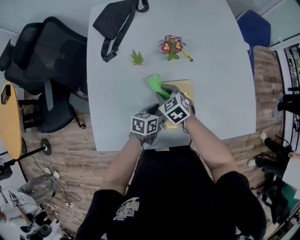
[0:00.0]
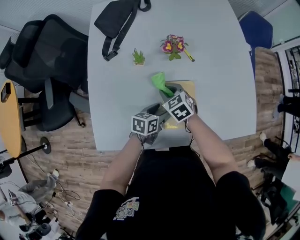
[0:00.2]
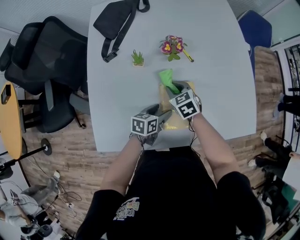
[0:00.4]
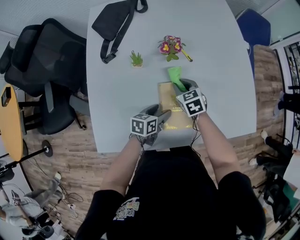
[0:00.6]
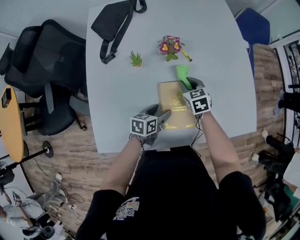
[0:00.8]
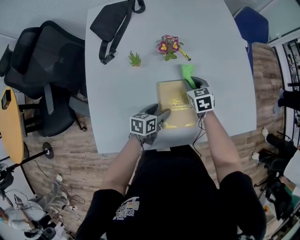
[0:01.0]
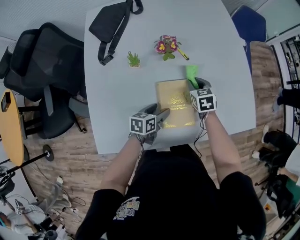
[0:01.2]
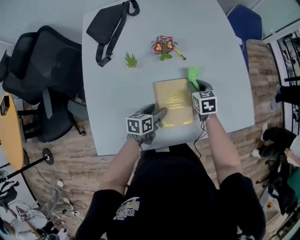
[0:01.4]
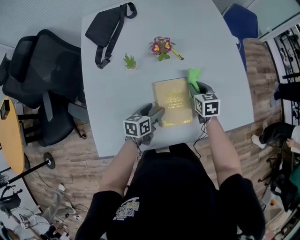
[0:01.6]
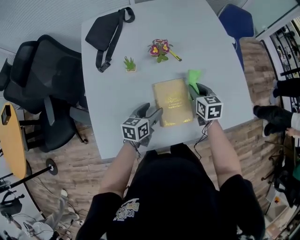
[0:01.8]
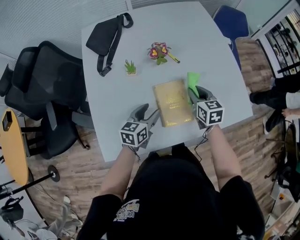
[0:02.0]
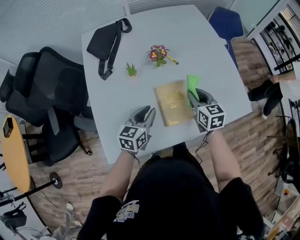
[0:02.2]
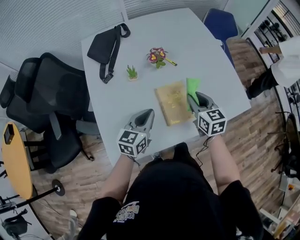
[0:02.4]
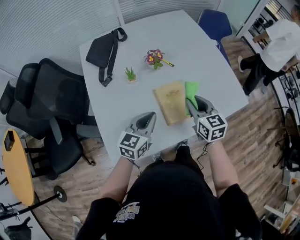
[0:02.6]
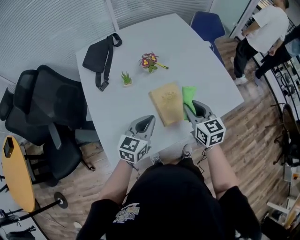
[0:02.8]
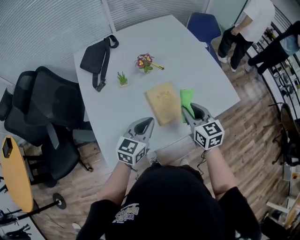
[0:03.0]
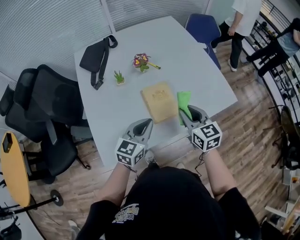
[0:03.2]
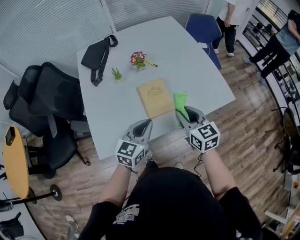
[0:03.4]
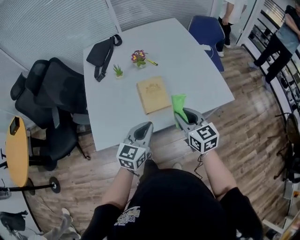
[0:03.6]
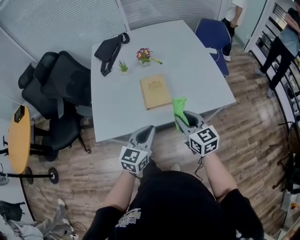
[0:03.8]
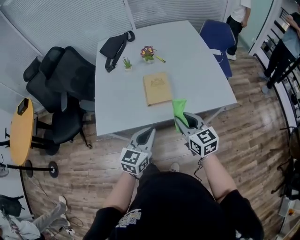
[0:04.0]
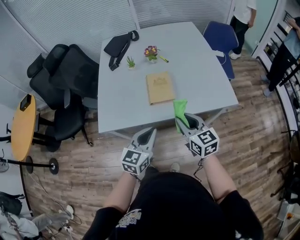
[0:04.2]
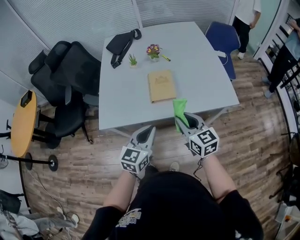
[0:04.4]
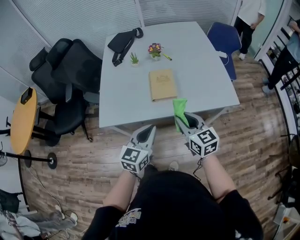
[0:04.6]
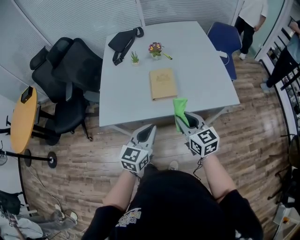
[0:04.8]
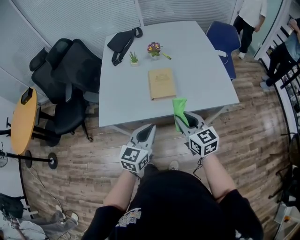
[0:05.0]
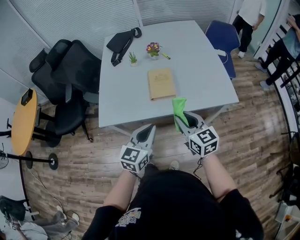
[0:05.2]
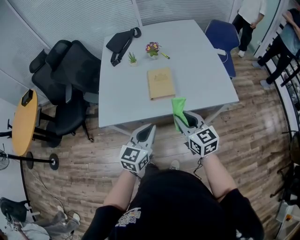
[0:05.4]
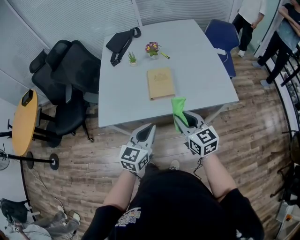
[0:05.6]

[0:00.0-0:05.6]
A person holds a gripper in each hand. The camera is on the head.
0:00.0 to 0:01.4: The right gripper moves to the right and forward, approximately 20 cm, and turns by approximately 30 degrees.
0:01.4 to 0:02.8: The left gripper shifts about 20 cm upward and backward, turns by approximately 40 degrees, and closes up, while the right gripper is displaced backward and upward by roughly 25 cm, and swivels roughly 30 degrees.
0:02.8 to 0:04.2: The two grippers go about 25 cm backward and to the right. The right gripper turns by some 20 degrees.
0:04.2 to 0:05.6: The grippers make only small movements.

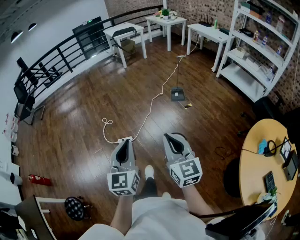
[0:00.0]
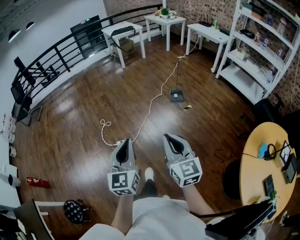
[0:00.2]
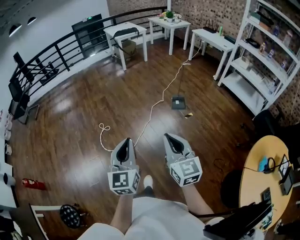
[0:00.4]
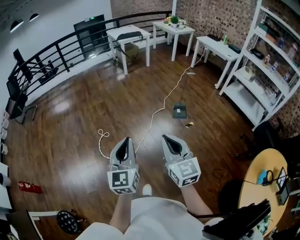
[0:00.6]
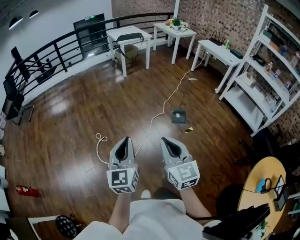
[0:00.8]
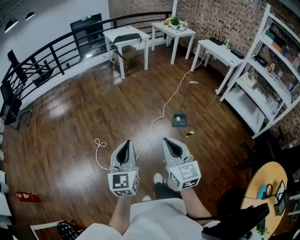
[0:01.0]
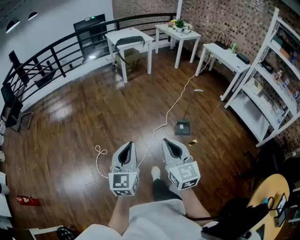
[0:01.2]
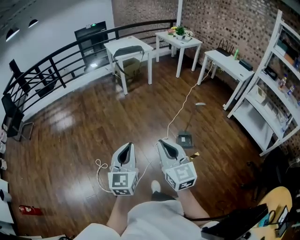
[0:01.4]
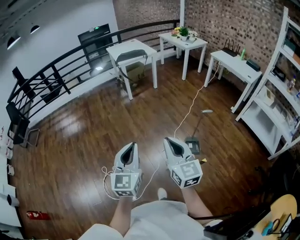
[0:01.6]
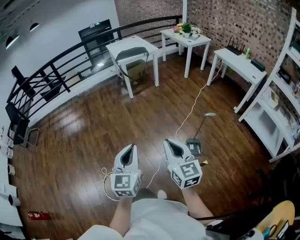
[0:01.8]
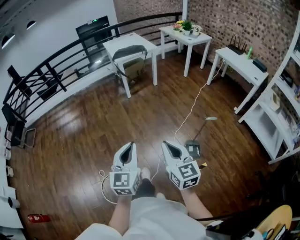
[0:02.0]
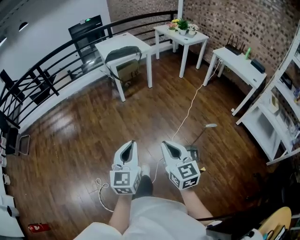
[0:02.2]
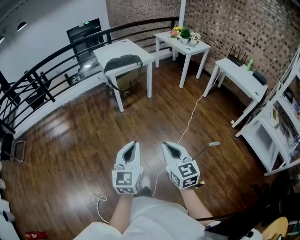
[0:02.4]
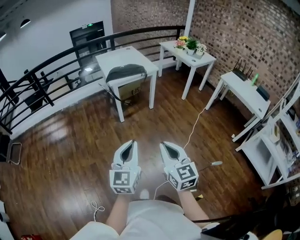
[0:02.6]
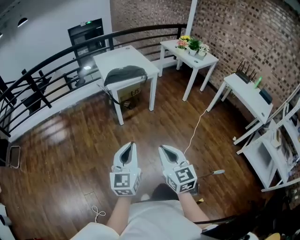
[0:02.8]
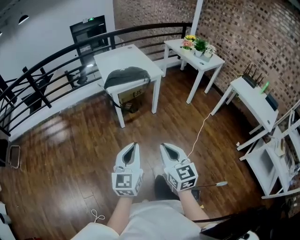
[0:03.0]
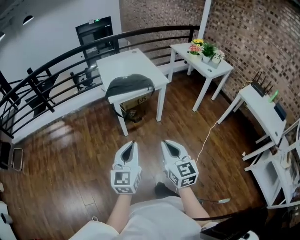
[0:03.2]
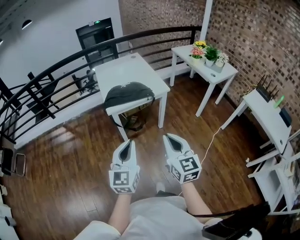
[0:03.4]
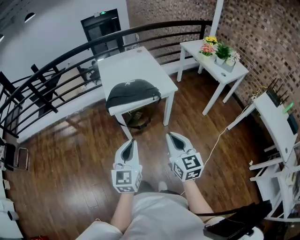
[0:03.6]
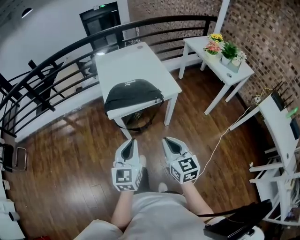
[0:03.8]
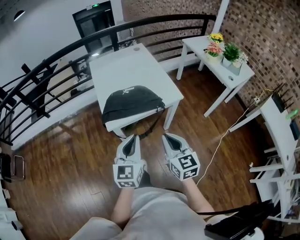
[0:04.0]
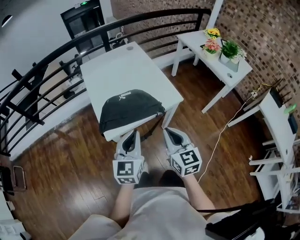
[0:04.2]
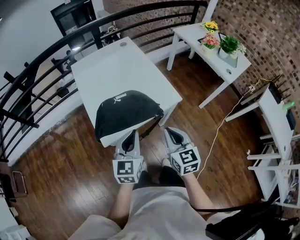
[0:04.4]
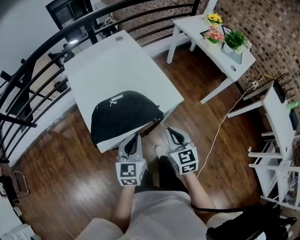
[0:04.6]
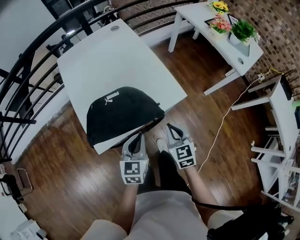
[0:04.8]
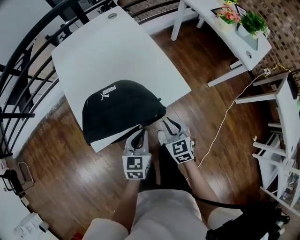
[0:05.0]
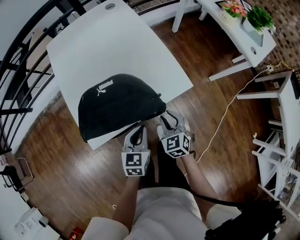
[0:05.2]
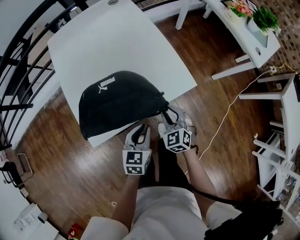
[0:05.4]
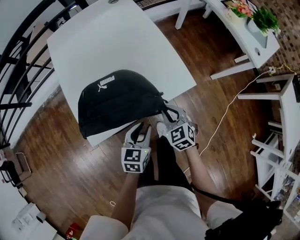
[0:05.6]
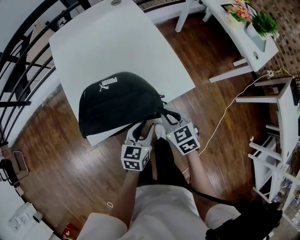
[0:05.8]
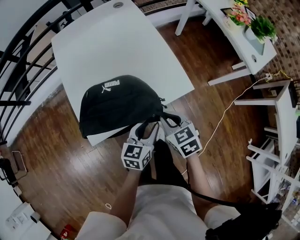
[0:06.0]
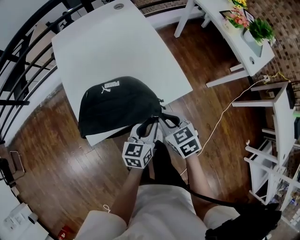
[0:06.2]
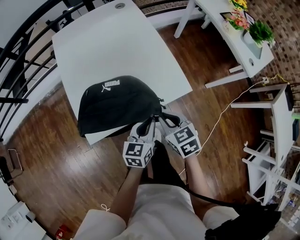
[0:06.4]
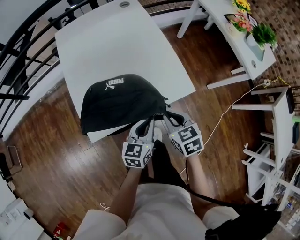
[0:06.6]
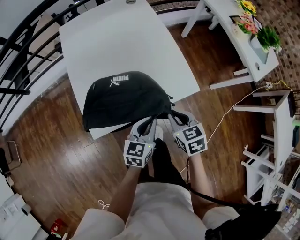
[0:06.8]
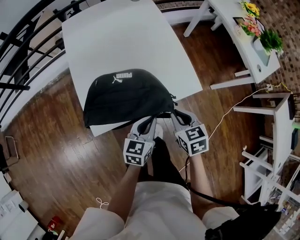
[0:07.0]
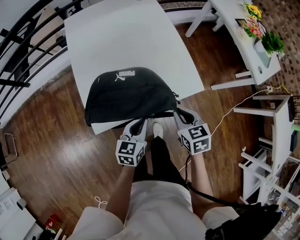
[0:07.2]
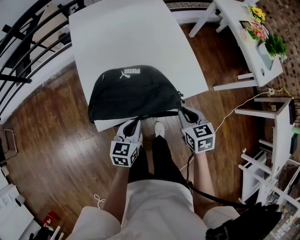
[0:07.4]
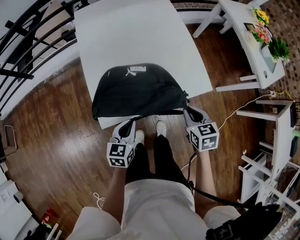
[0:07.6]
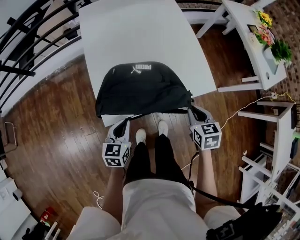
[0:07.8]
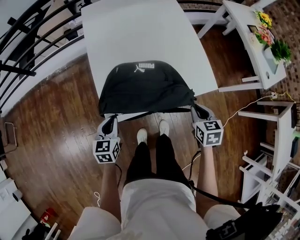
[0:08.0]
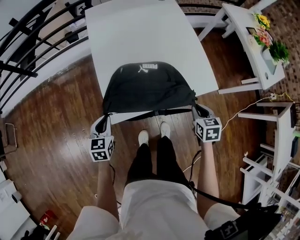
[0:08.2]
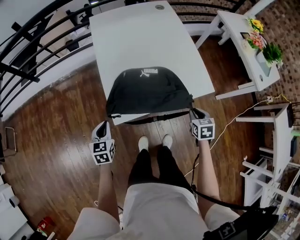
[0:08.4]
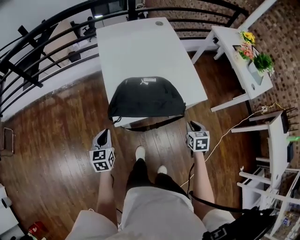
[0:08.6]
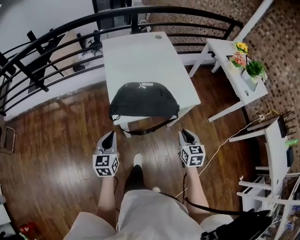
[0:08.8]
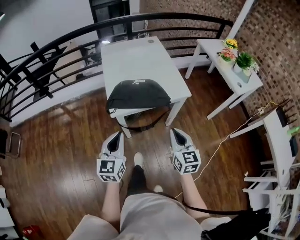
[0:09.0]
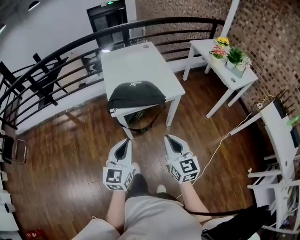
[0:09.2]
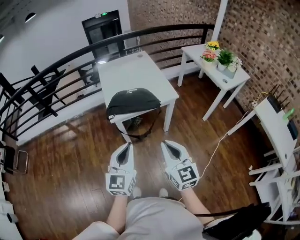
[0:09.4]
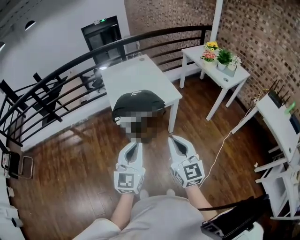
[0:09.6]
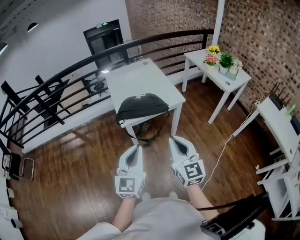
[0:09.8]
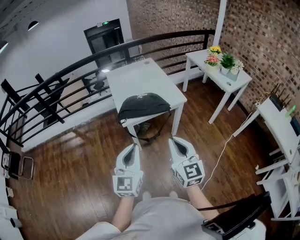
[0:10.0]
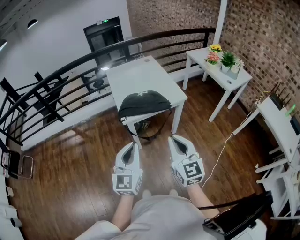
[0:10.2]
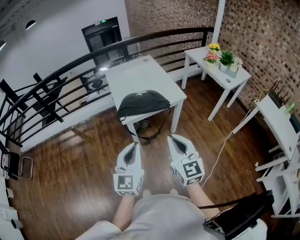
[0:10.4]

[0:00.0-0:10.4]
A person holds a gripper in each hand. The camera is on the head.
0:00.0 to 0:01.4: Both grippers are carried forward, roughly 60 cm.
0:01.4 to 0:03.0: Both grippers are carried forward, approximately 80 cm.
0:03.0 to 0:04.4: The pair of grippers is taken forward, approximately 60 cm.
0:04.4 to 0:06.0: The right gripper travels downward and forward by about 20 cm, and turns by roughly 30 degrees. The left gripper travels downward, to the right and forward by some 25 cm, turns by some 30 degrees, and opens.
0:06.0 to 0:07.4: The left gripper is displaced to the left by approximately 15 cm, and closes its fingers.
0:07.4 to 0:09.0: The two grippers go some 30 cm backward and upward. The left gripper swivels roughly 30 degrees, while the right gripper points its fingers about 30 degrees further upward.
0:09.0 to 0:10.4: The two grippers go about 20 cm backward and upward.

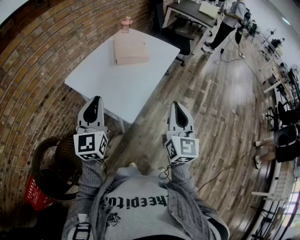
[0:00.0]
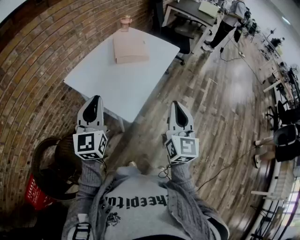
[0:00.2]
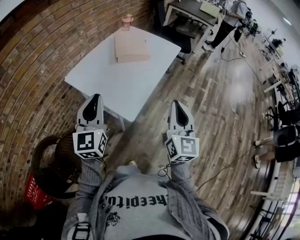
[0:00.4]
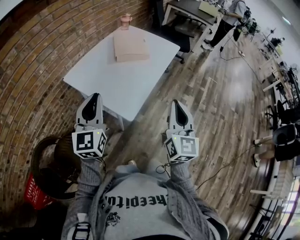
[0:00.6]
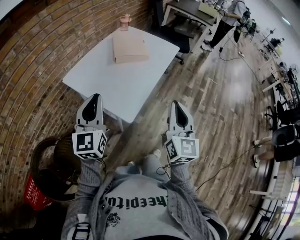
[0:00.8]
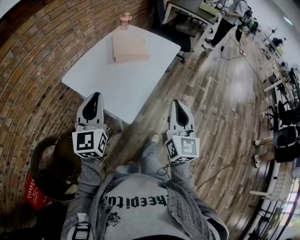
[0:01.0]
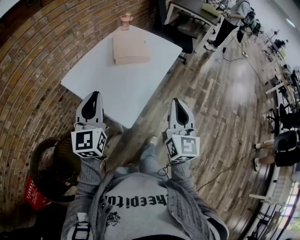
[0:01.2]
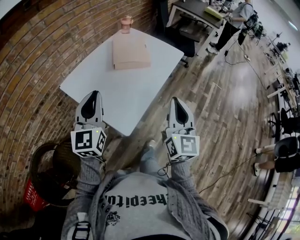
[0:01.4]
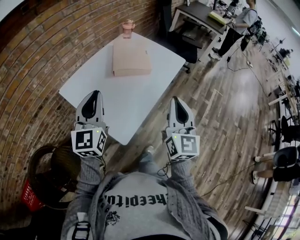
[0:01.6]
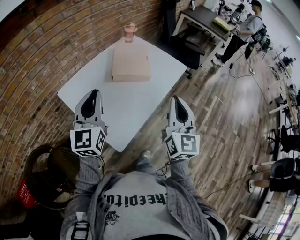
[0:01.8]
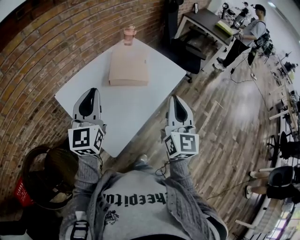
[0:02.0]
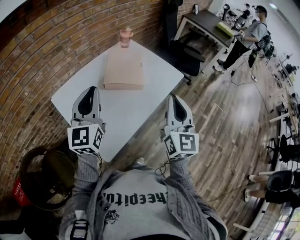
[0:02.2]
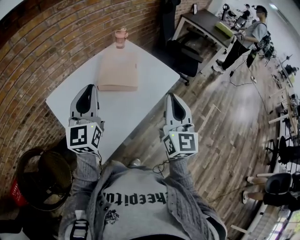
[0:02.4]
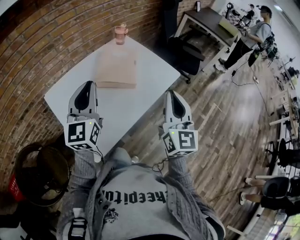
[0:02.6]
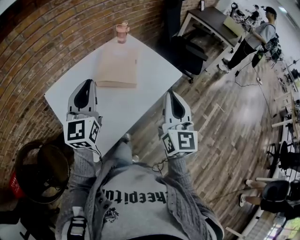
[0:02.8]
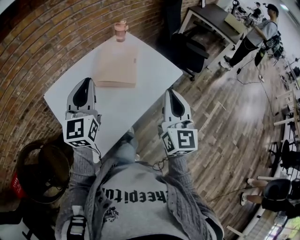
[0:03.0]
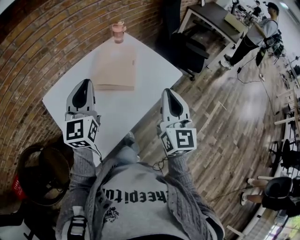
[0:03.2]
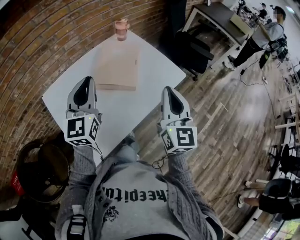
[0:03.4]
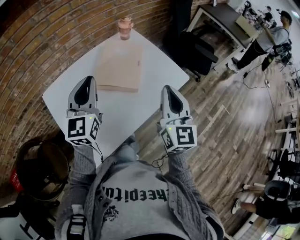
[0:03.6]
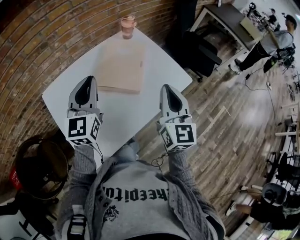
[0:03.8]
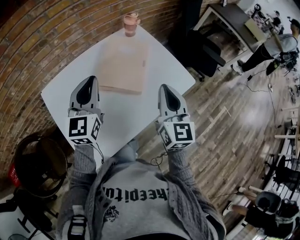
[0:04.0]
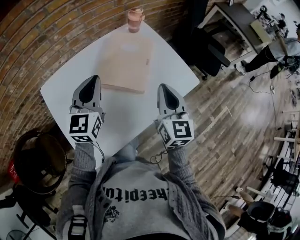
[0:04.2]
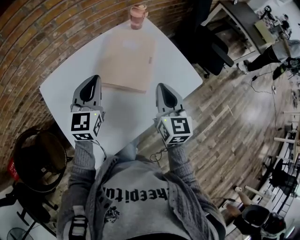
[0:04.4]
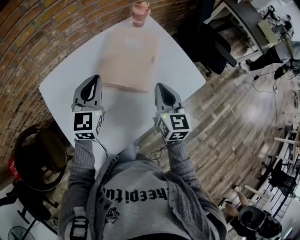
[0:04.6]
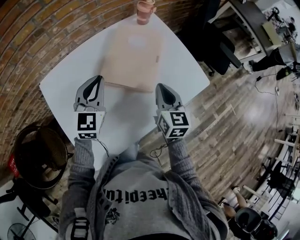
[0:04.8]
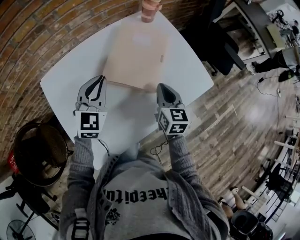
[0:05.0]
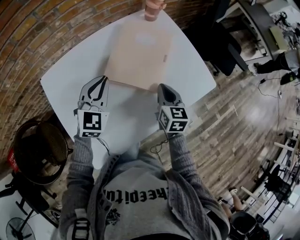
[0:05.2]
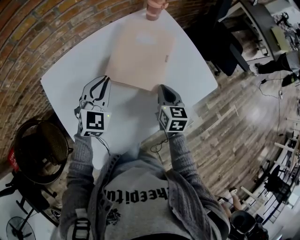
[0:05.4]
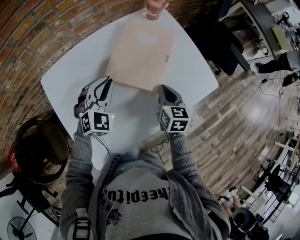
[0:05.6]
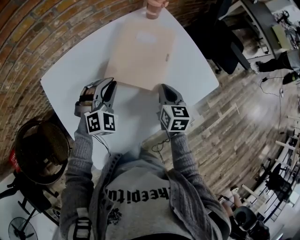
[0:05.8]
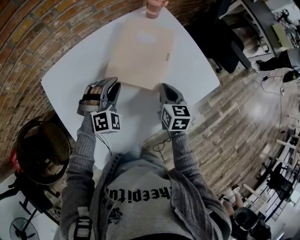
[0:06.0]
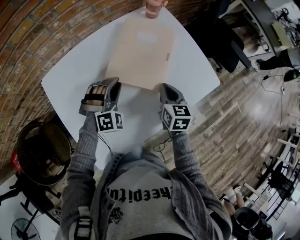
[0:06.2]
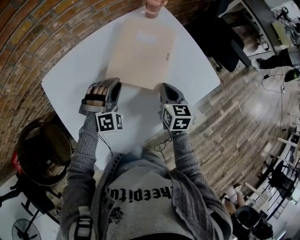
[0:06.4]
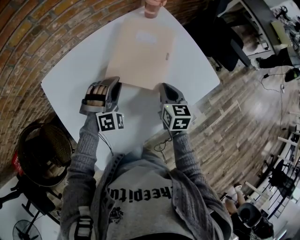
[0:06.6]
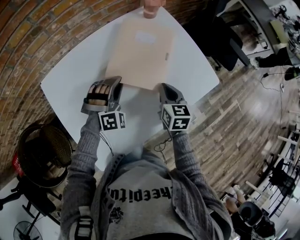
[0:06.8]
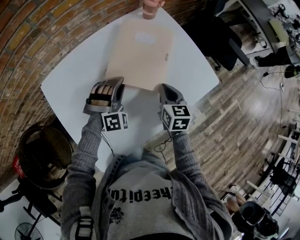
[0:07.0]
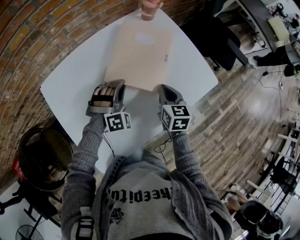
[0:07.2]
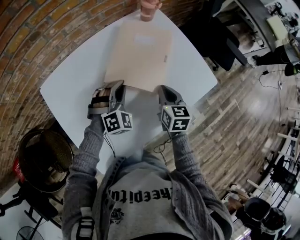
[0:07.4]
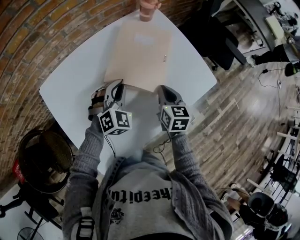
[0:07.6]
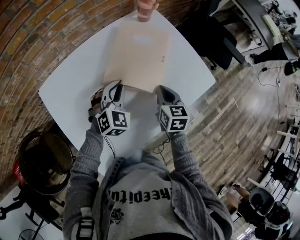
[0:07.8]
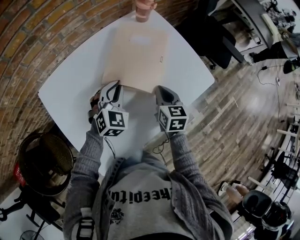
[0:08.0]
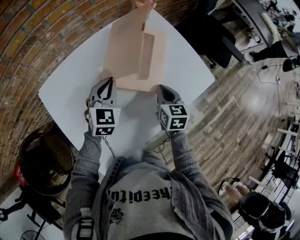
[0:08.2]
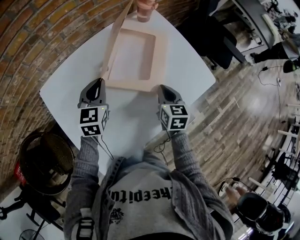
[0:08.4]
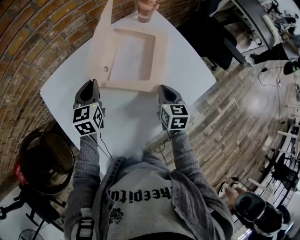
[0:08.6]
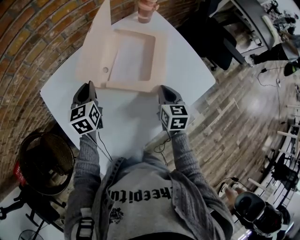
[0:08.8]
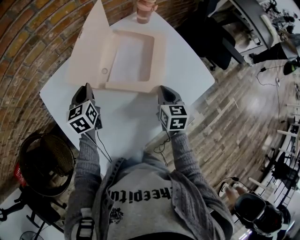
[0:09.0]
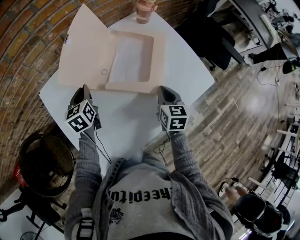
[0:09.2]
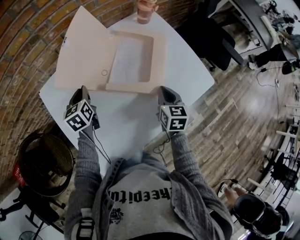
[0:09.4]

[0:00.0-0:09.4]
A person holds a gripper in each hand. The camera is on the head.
0:00.0 to 0:01.6: The grippers both shift forward by approximately 15 cm.
0:01.6 to 0:03.2: Both grippers travel together forward and to the right, some 20 cm.
0:03.2 to 0:04.8: The two grippers go approximately 25 cm downward and forward. The right gripper changes its angle by approximately 30 degrees; the left gripper rotates approximately 20 degrees.
0:04.8 to 0:06.2: The right gripper goes approximately 10 cm downward. The left gripper shifts some 10 cm downward, twists about 50 degrees clockwise, seen from behind, and opens its fingers.
0:06.2 to 0:07.8: The left gripper changes its angle by roughly 30 degrees.
0:07.8 to 0:09.4: The left gripper is displaced to the left by roughly 20 cm, and rolls counterclockwise, seen from behind, by some 60 degrees.
